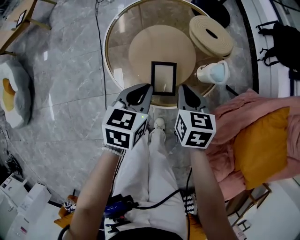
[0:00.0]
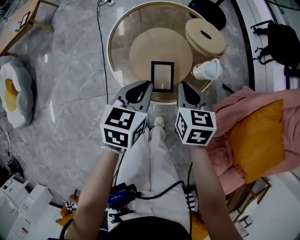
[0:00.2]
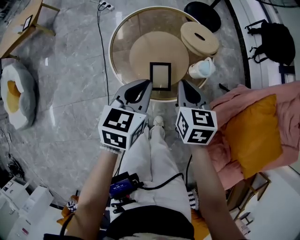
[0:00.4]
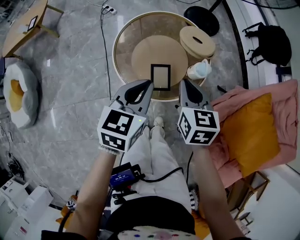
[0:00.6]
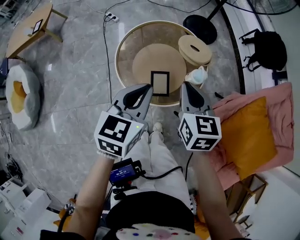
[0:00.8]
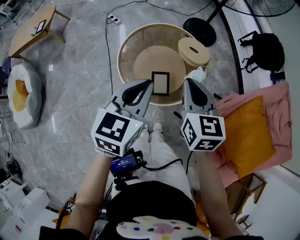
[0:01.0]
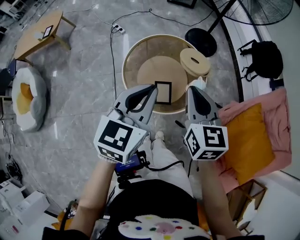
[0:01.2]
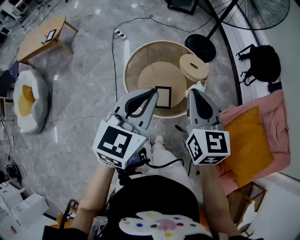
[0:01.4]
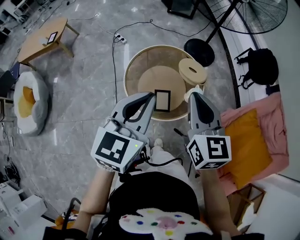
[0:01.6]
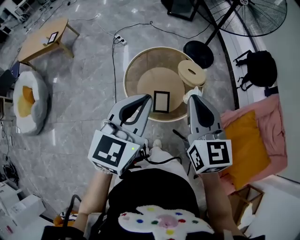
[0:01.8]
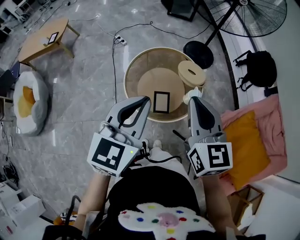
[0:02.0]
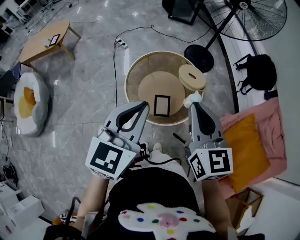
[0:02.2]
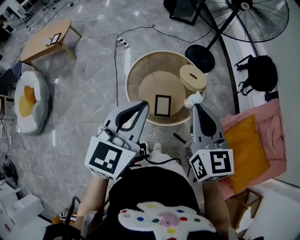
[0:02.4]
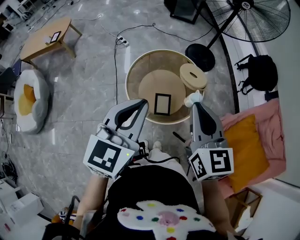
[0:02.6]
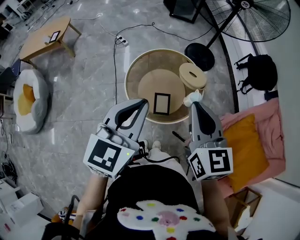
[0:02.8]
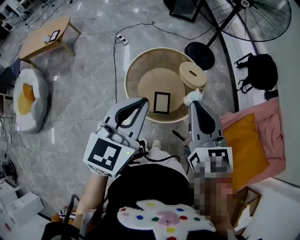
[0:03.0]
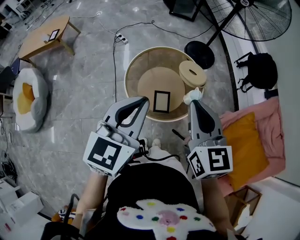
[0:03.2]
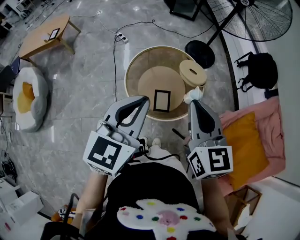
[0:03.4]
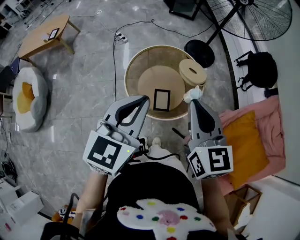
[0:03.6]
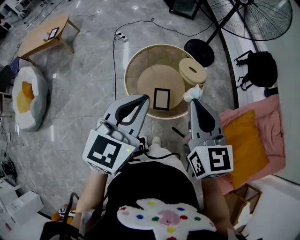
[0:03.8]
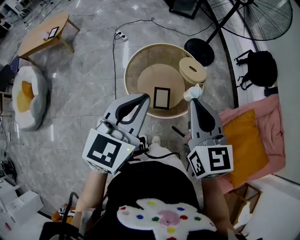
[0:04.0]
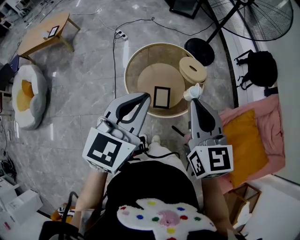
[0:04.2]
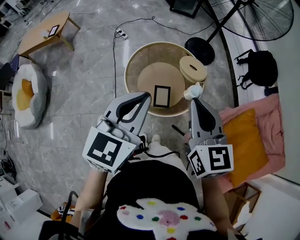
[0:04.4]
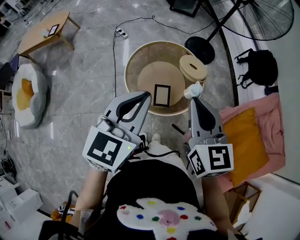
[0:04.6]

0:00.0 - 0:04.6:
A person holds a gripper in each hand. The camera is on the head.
0:00.0 - 0:01.6: The grippers both shift upward by some 35 cm. The right gripper swivels roughly 30 degrees, while the left gripper turns by about 30 degrees.
0:01.6 - 0:04.6: The grippers stay close to where they were, moving slightly.

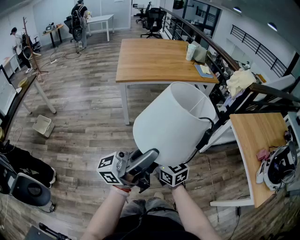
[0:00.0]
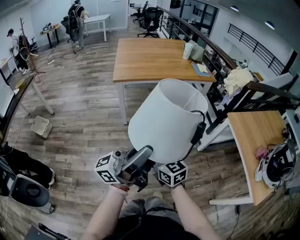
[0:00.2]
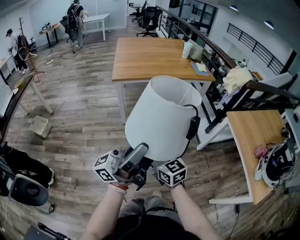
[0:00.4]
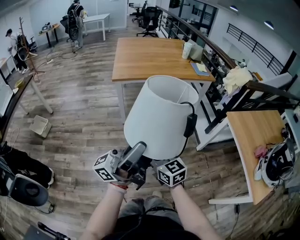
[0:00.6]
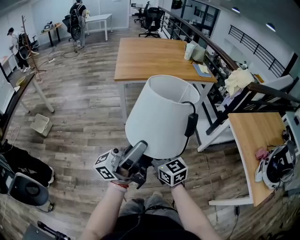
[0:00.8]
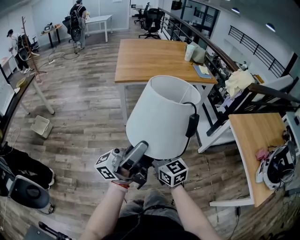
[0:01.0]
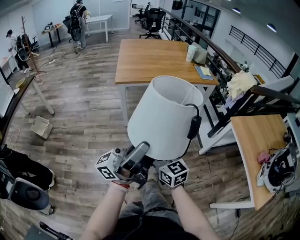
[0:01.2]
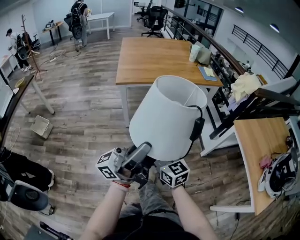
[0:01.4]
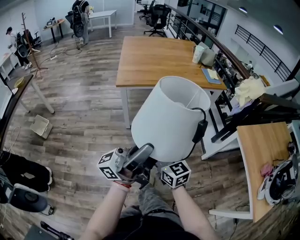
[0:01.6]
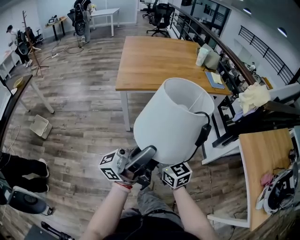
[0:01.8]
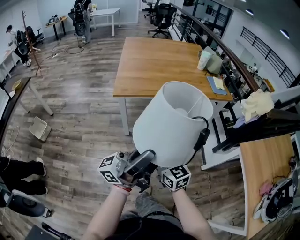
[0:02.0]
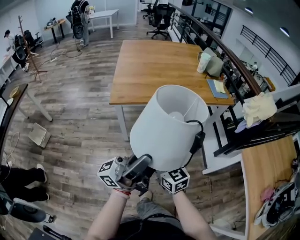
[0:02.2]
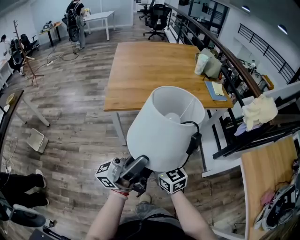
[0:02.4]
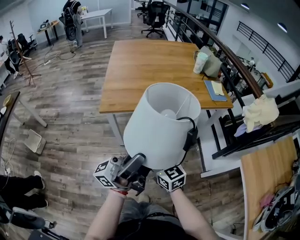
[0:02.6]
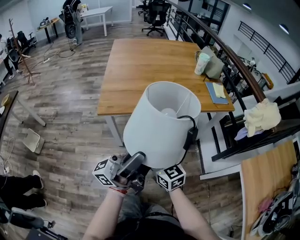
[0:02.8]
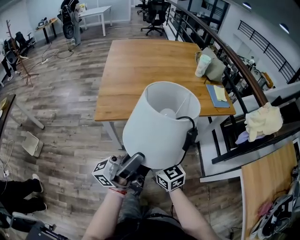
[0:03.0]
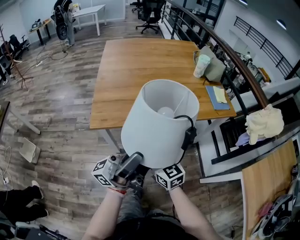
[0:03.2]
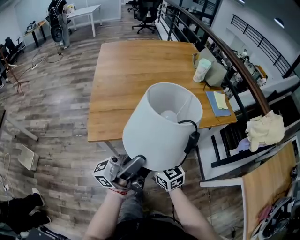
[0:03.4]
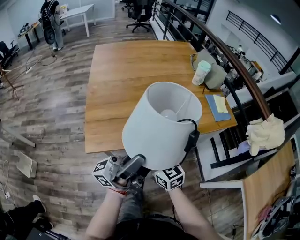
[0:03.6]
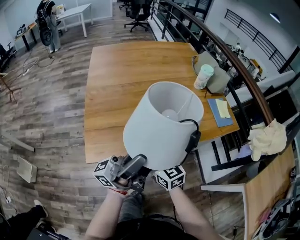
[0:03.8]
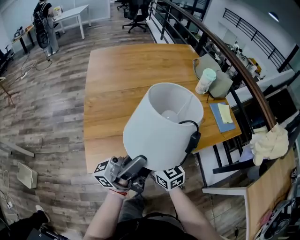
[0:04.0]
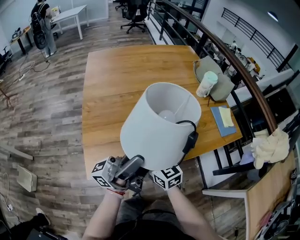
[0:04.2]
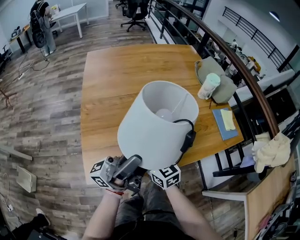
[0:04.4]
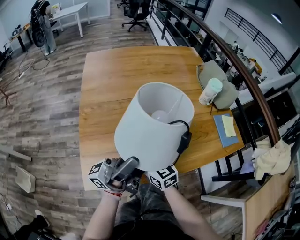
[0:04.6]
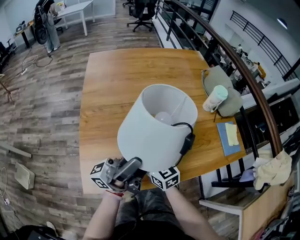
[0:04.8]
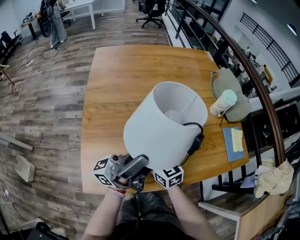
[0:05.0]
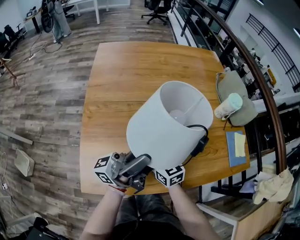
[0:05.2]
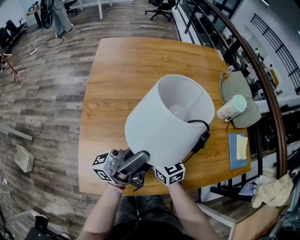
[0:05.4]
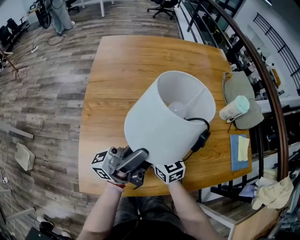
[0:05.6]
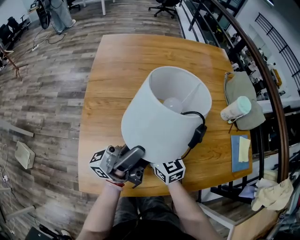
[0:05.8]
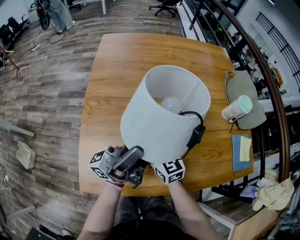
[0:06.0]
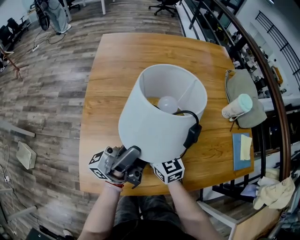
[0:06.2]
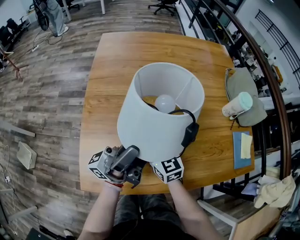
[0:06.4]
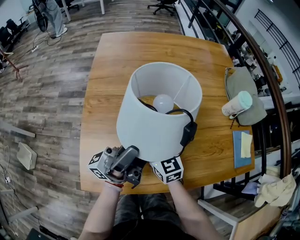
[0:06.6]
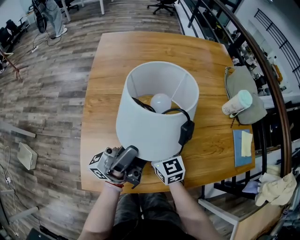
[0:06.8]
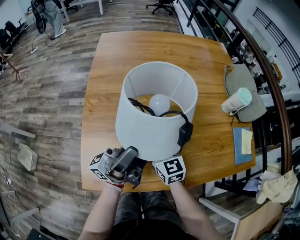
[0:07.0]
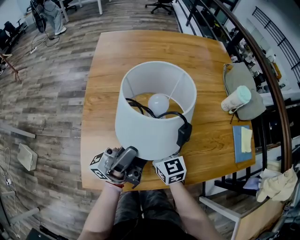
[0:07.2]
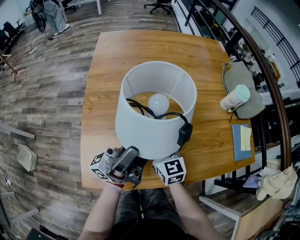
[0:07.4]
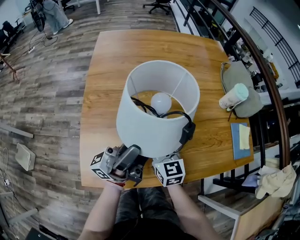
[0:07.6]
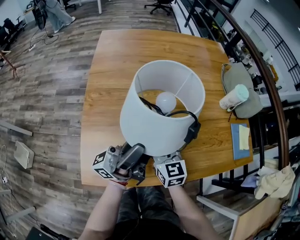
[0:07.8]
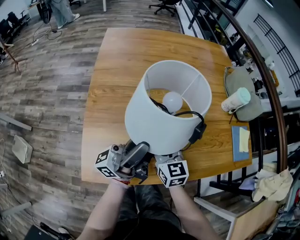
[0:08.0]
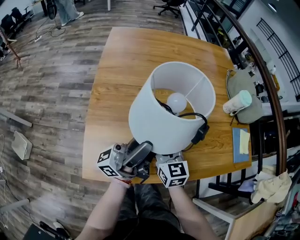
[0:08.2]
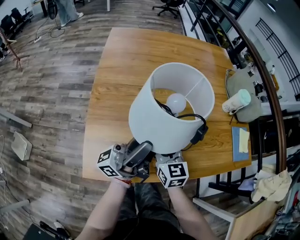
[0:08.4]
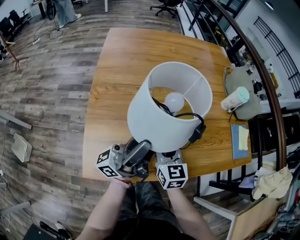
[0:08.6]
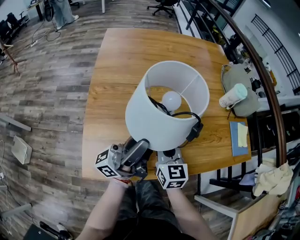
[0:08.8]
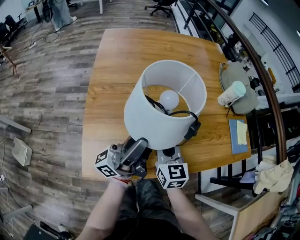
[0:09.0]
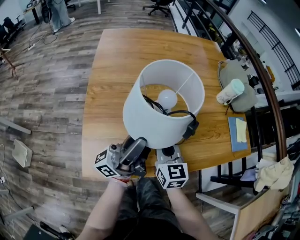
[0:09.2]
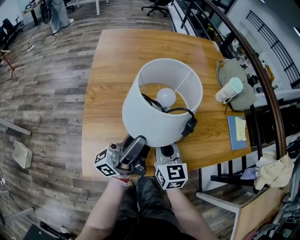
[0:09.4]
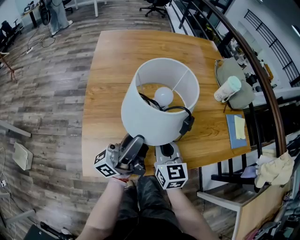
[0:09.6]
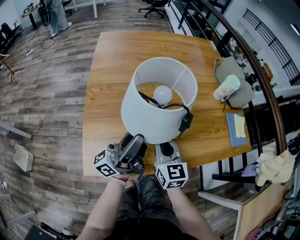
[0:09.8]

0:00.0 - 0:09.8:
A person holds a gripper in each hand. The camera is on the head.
0:00.0 - 0:01.4: The left gripper moves forward and to the left, approximately 10 cm; the right gripper heads forward, covering approximately 5 cm.
0:01.4 - 0:02.8: The two grippers go approximately 30 cm forward.
0:02.8 - 0:04.2: The grippers both shift forward by roughly 30 cm.
0:04.2 - 0:05.6: The two grippers go about 15 cm forward.
0:05.6 - 0:07.0: There are only small adjustments of the grippers.
0:07.0 - 0:08.4: The grippers move only a little.
0:08.4 - 0:09.8: The right gripper changes place by roughly 5 cm, and closes up.

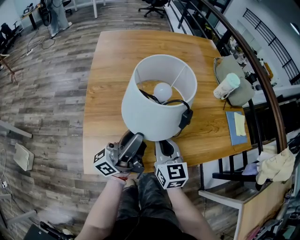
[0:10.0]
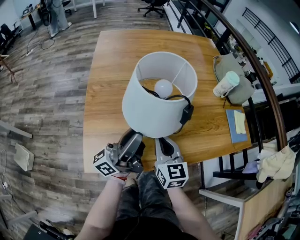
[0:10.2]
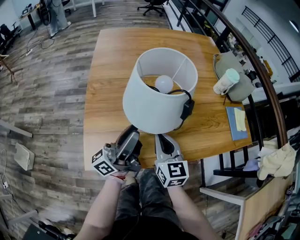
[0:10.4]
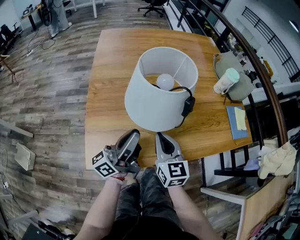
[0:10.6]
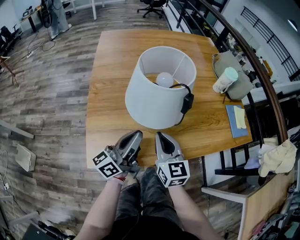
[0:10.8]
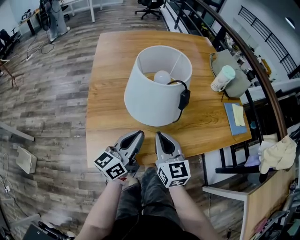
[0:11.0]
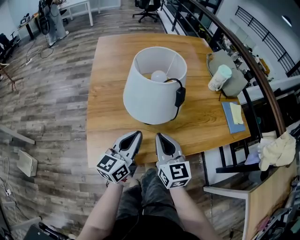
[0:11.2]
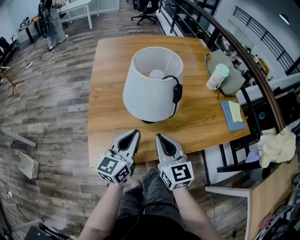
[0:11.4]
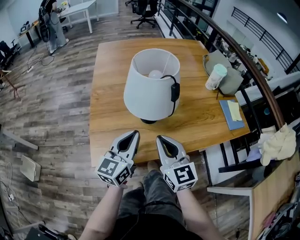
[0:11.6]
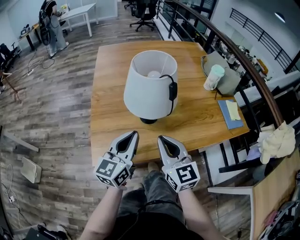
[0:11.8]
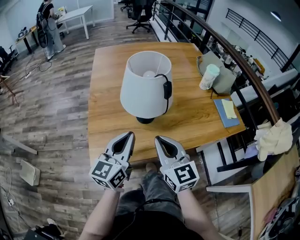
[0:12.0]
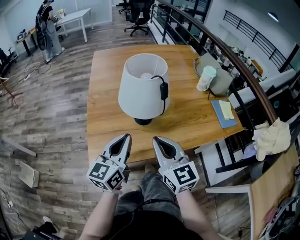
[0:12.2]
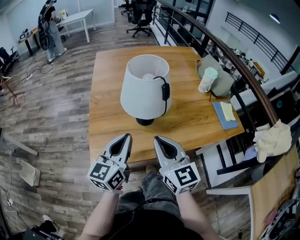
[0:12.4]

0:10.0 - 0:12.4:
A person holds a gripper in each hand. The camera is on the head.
0:10.0 - 0:11.2: The left gripper goes roughly 5 cm downward, tips its fingers downward by approximately 40 degrees, and closes up; the right gripper heads backward, covering roughly 5 cm.
0:11.2 - 0:12.4: The grippers both shift upward and backward by some 10 cm.

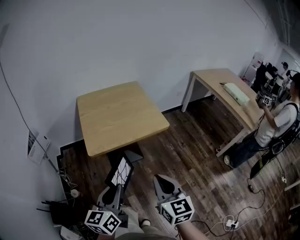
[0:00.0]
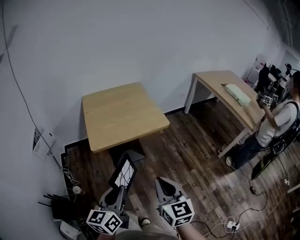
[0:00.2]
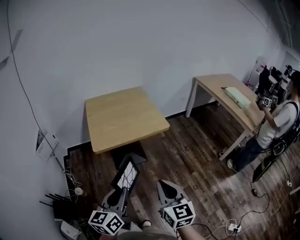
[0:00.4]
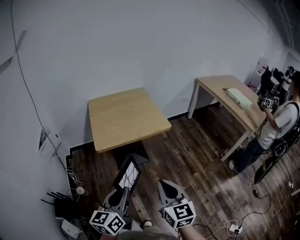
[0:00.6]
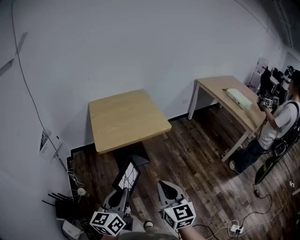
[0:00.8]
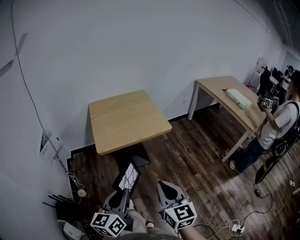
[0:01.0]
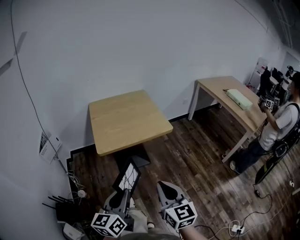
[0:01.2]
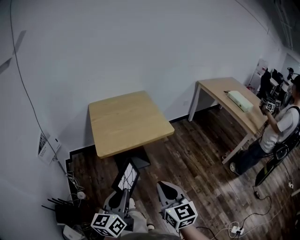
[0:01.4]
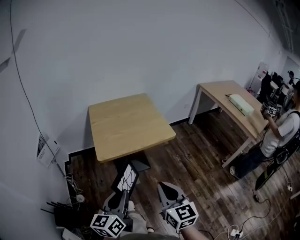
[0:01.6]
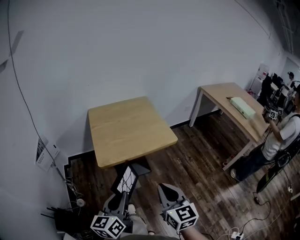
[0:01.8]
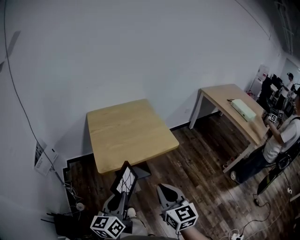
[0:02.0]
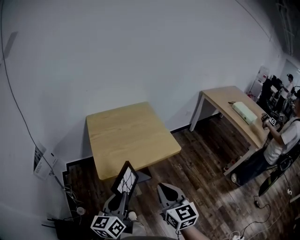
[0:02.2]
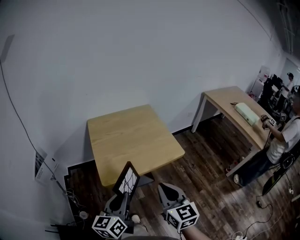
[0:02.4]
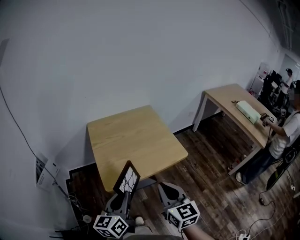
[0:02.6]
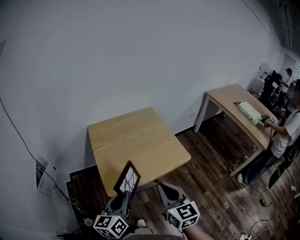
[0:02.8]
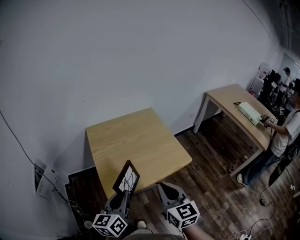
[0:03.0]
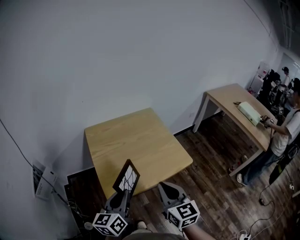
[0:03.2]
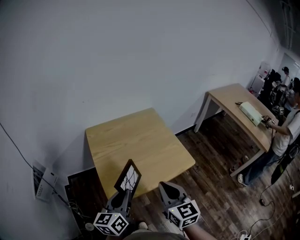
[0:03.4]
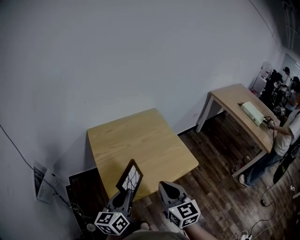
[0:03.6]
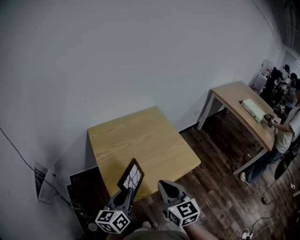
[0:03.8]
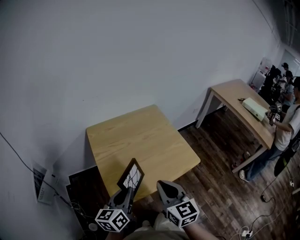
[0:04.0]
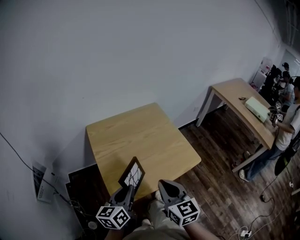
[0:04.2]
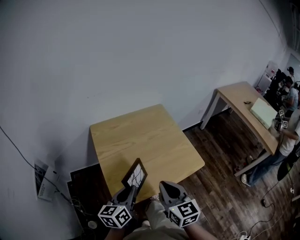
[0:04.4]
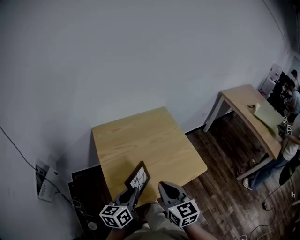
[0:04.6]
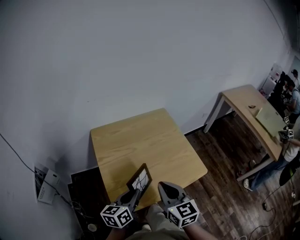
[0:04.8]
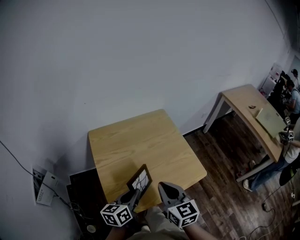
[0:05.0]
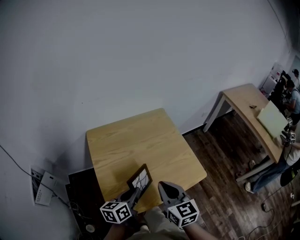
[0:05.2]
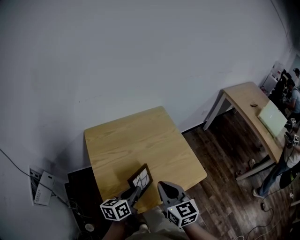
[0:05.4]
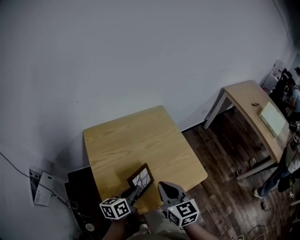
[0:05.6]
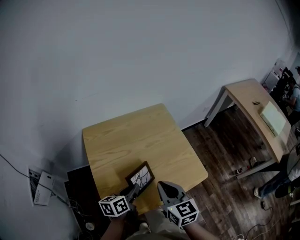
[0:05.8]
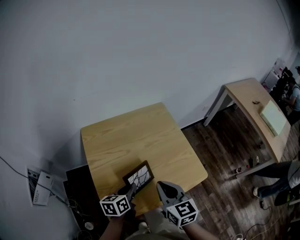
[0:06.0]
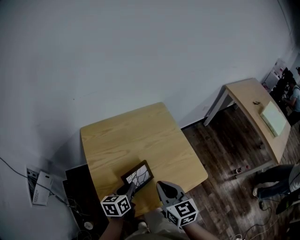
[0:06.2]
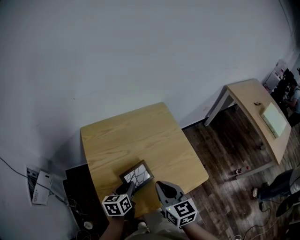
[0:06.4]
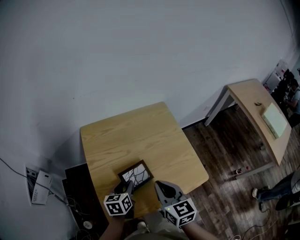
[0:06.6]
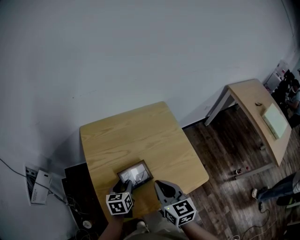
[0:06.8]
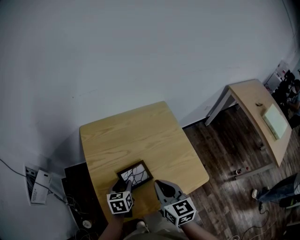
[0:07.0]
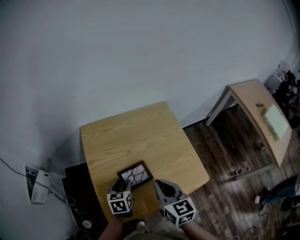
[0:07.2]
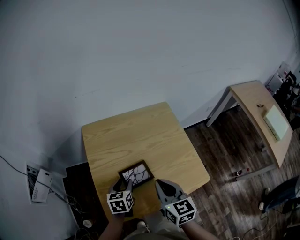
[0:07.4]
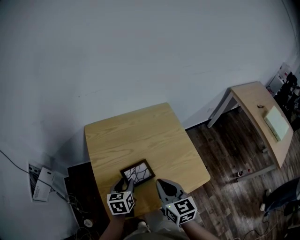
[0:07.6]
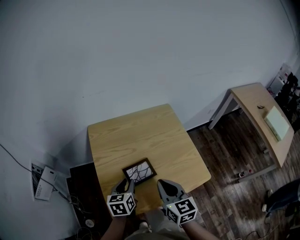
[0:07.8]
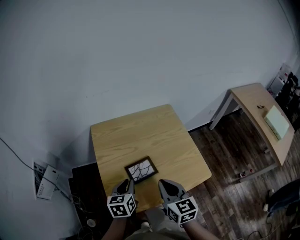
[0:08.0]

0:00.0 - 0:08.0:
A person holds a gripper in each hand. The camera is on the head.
0:00.0 - 0:01.6: The right gripper goes backward and returns, roughly 10 cm each way, while the left gripper goes backward and returns, approximately 10 cm each way.
0:01.6 - 0:03.2: Both grippers travel together forward, about 25 cm.
0:03.2 - 0:04.8: The left gripper travels forward and downward by roughly 15 cm; the right gripper is displaced forward by roughly 10 cm.
0:04.8 - 0:06.4: The left gripper goes roughly 15 cm downward and forward. Meanwhile the right gripper goes some 5 cm forward.
0:06.4 - 0:08.0: The left gripper ends up some 5 cm from where it was.
